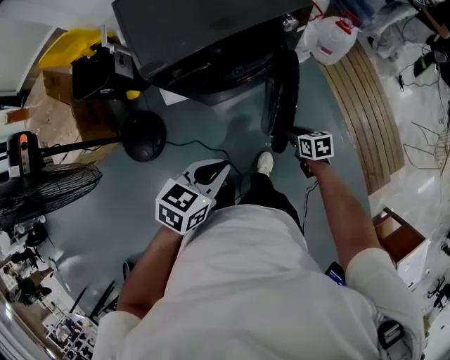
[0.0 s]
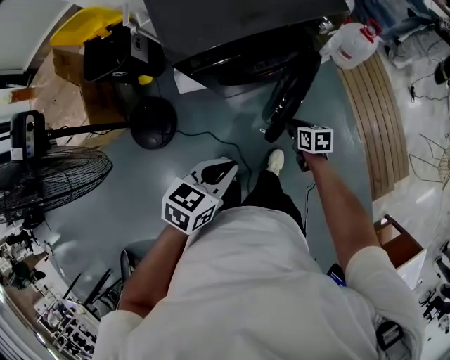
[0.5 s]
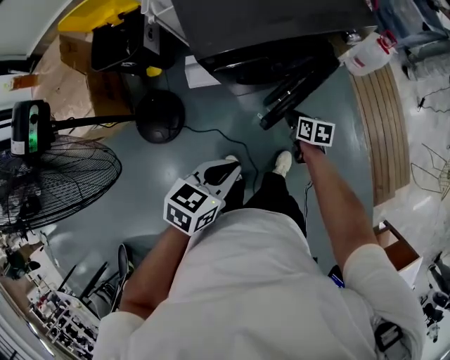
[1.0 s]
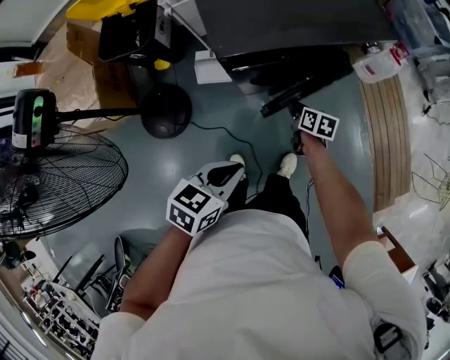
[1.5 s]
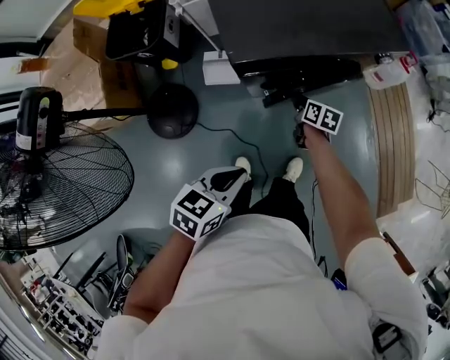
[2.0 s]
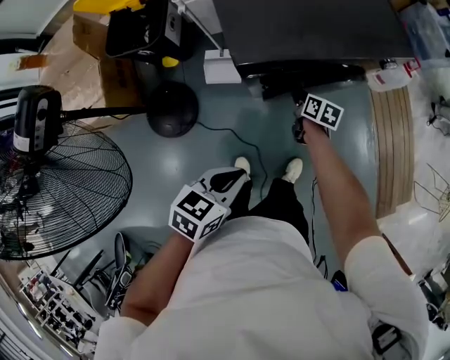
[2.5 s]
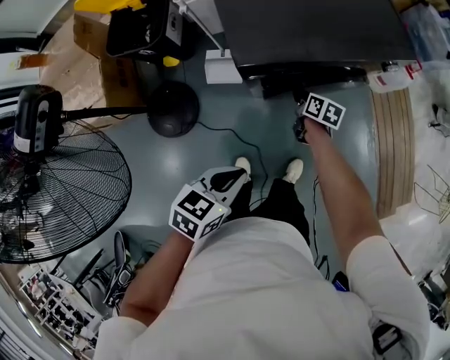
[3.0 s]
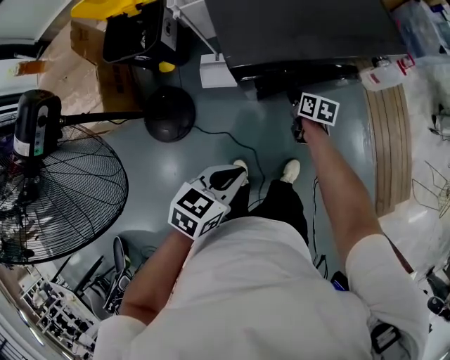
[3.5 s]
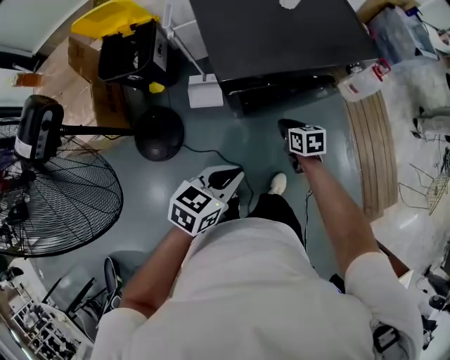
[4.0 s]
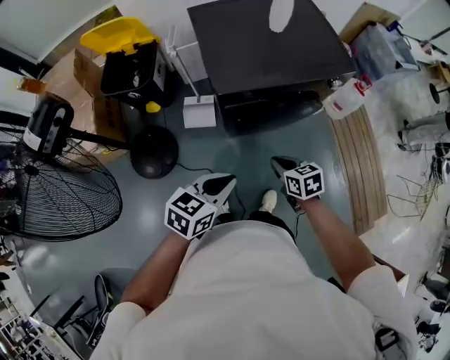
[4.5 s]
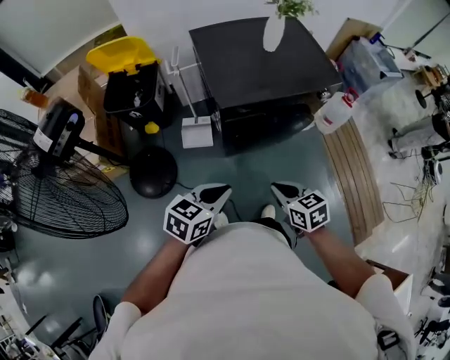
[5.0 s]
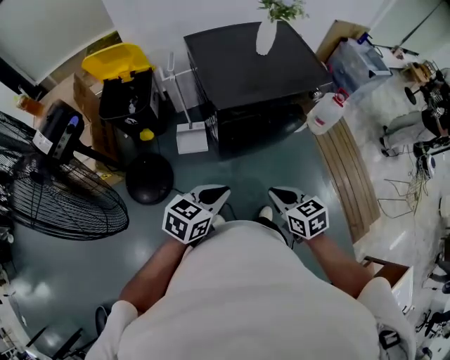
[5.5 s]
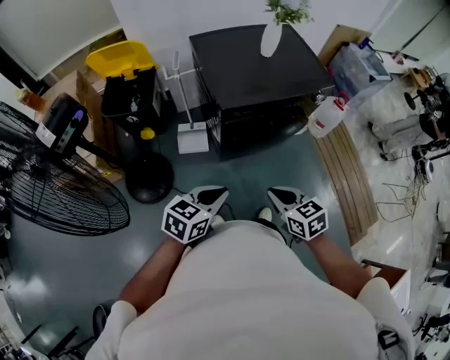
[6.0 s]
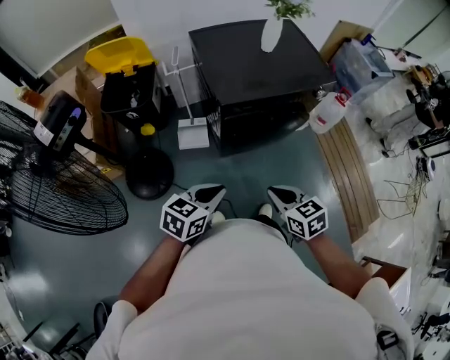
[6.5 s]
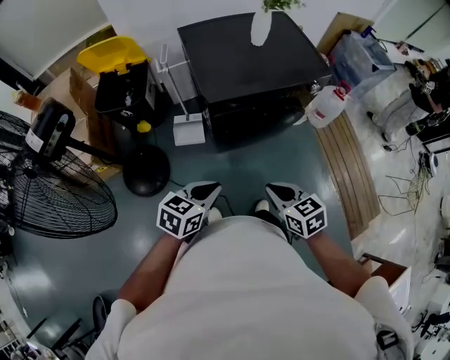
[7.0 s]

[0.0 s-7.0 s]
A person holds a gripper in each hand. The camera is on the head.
0.0 to 2.0 s: The left gripper heads to the left, covering about 20 cm. The right gripper heads to the left and forward, covering roughly 30 cm.
2.0 to 3.5 s: There are only small adjustments of the grippers.
3.5 to 5.0 s: The left gripper goes about 5 cm upward. Meanwhile the right gripper goes approximately 35 cm backward and upward, and swivels roughly 30 degrees.
5.0 to 7.0 s: There are only small adjustments of the grippers.

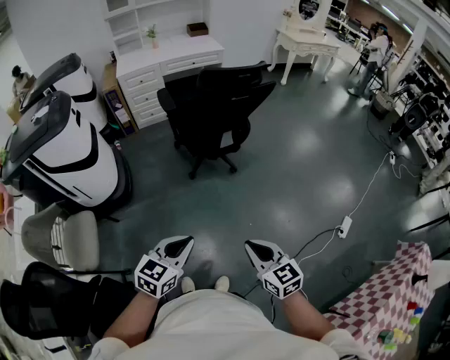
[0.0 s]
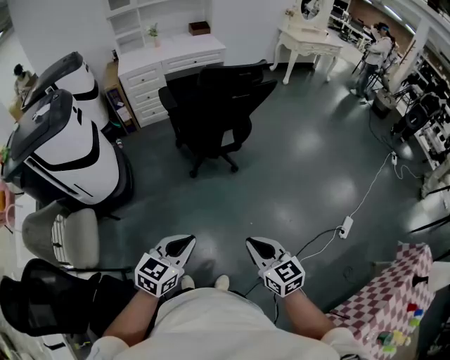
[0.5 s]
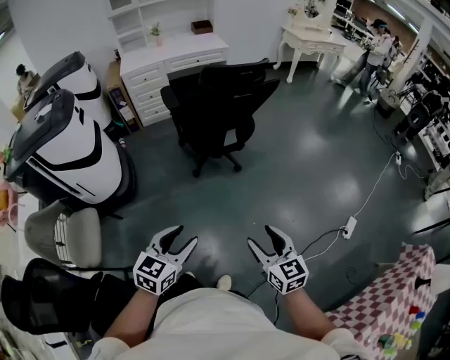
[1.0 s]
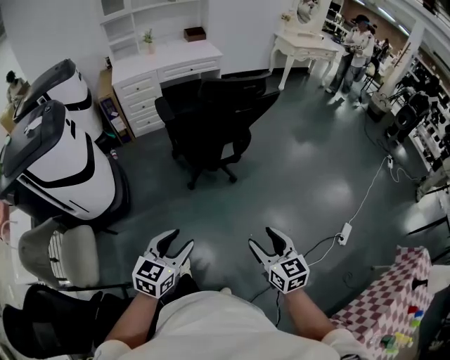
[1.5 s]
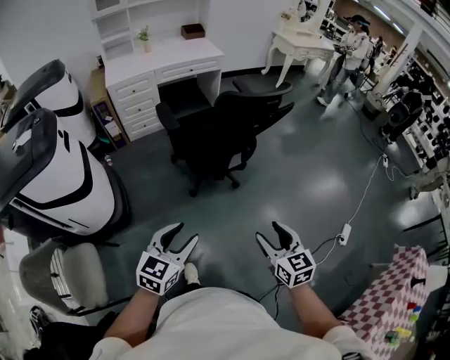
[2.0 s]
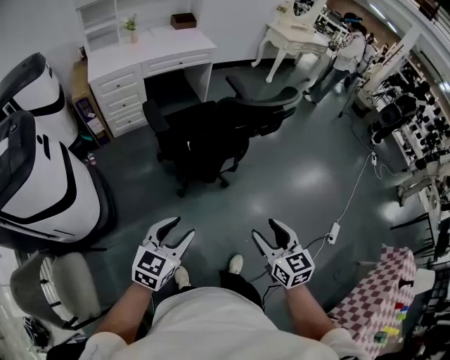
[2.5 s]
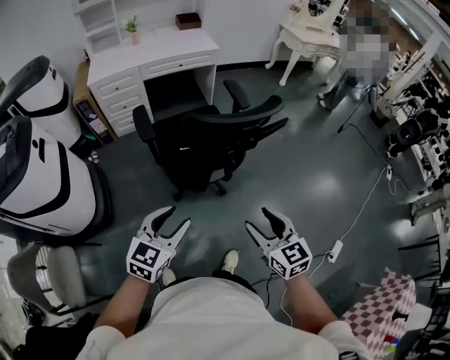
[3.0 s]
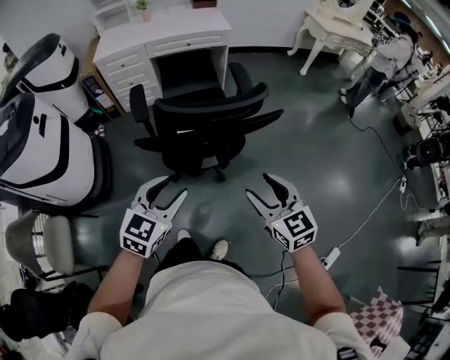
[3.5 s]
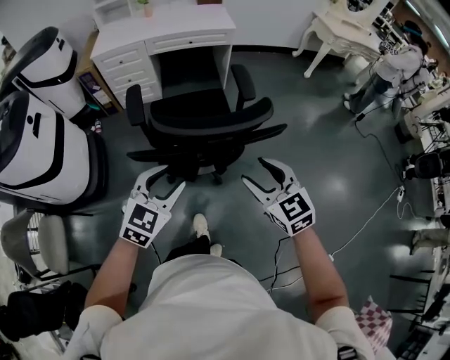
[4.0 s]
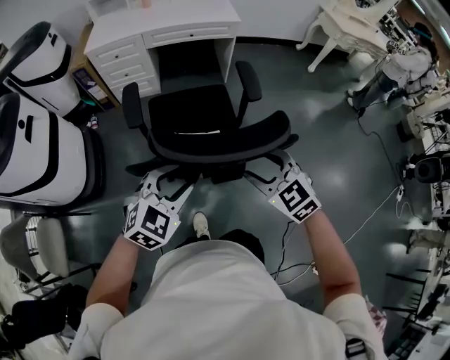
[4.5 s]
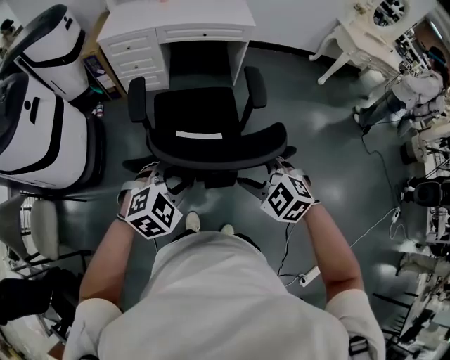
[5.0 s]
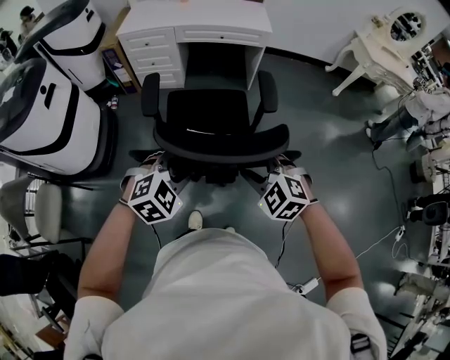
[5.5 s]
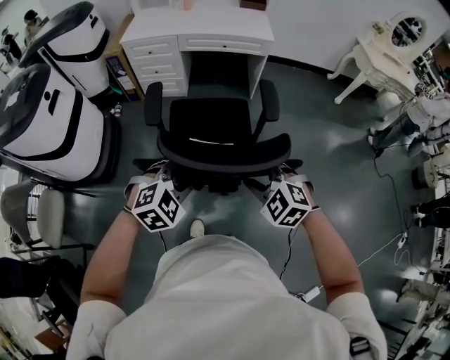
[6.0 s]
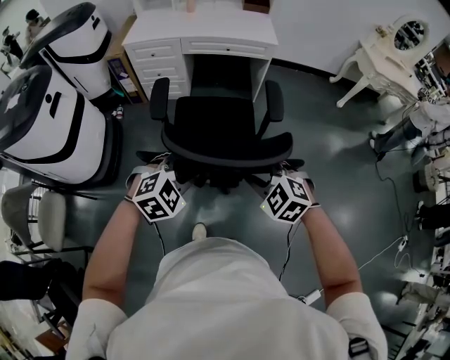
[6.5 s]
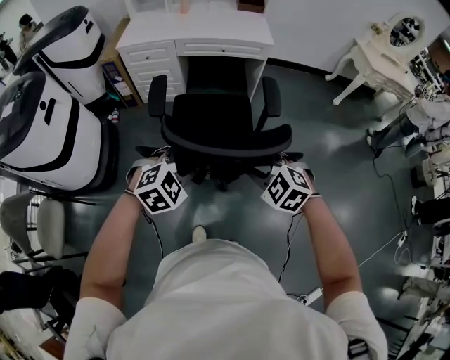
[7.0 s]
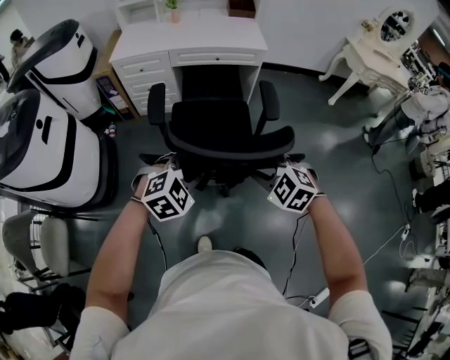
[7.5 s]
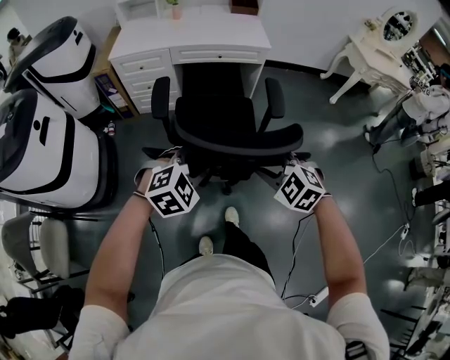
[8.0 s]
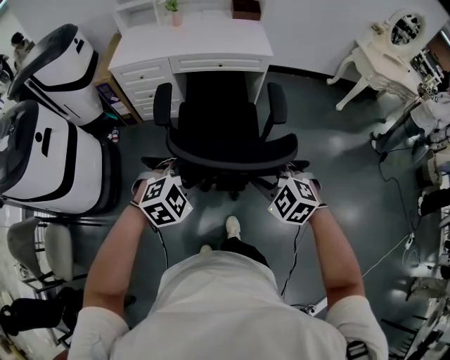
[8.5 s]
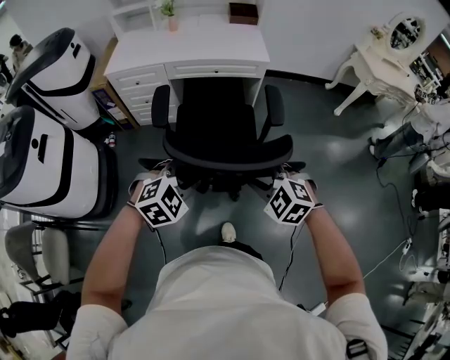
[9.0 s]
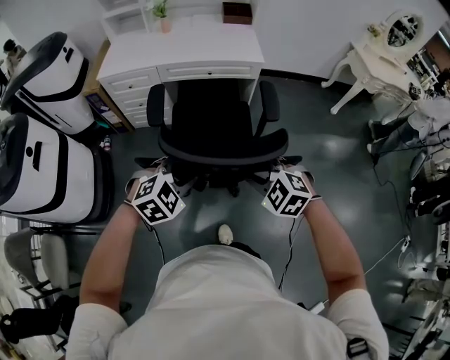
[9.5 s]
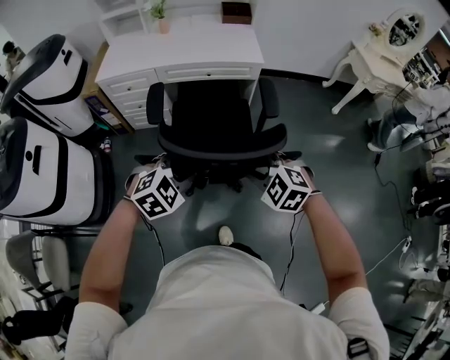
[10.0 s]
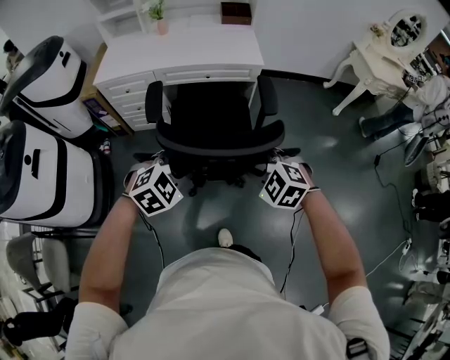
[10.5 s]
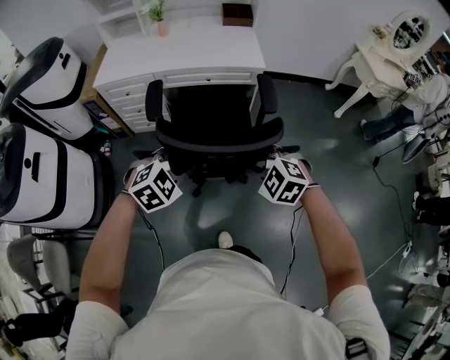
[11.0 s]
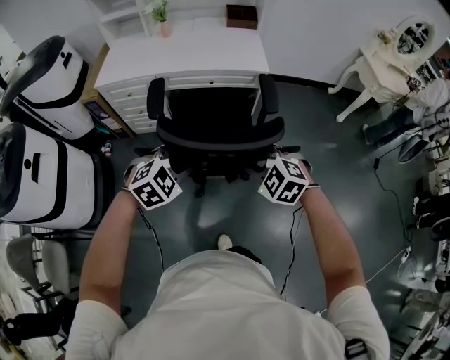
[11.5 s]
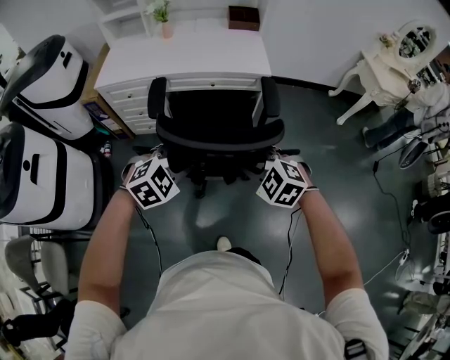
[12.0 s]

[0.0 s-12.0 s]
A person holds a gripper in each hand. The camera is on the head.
0.0 to 2.0 s: The left gripper travels forward and to the left by some 25 cm, and opens; the right gripper heads forward, covering about 20 cm, and opens.
2.0 to 4.0 s: The two grippers travel together, forward and to the right, some 40 cm. The right gripper changes its angle by roughly 30 degrees.
4.0 to 6.0 s: Both grippers move forward, roughly 10 cm. The left gripper turns by approximately 30 degrees. Meanwhile the right gripper rotates about 50 degrees, and closes up.
6.0 to 8.0 s: Both grippers move forward, approximately 15 cm.
8.0 to 10.0 s: Both grippers travel together forward, about 15 cm.
10.0 to 12.0 s: Both grippers travel together forward, about 10 cm.

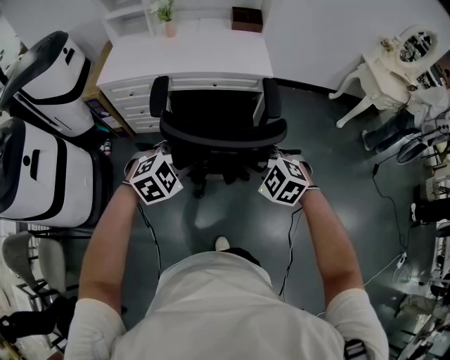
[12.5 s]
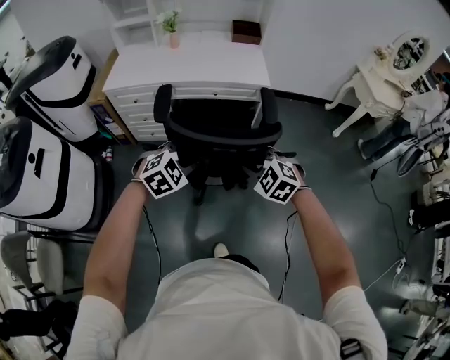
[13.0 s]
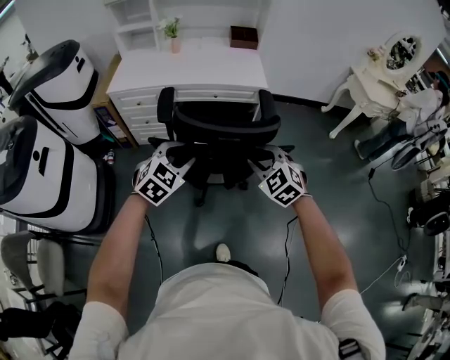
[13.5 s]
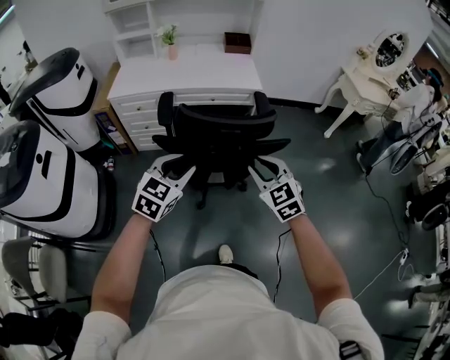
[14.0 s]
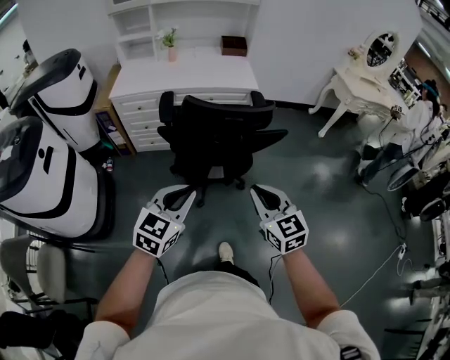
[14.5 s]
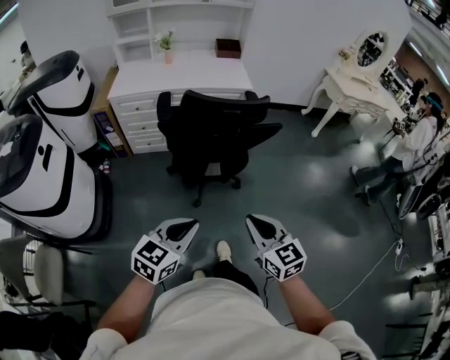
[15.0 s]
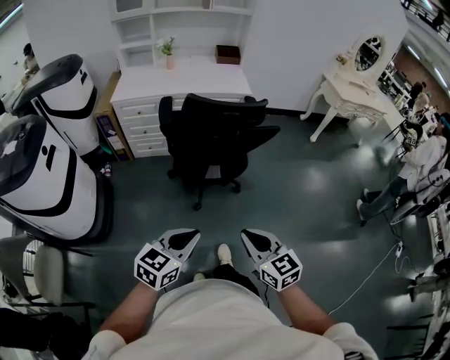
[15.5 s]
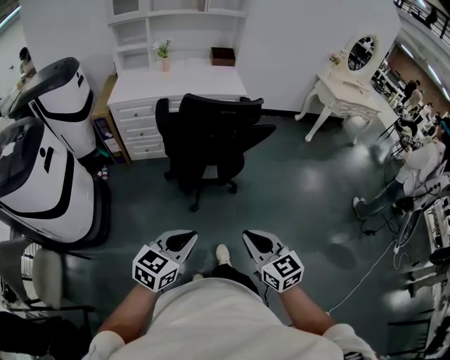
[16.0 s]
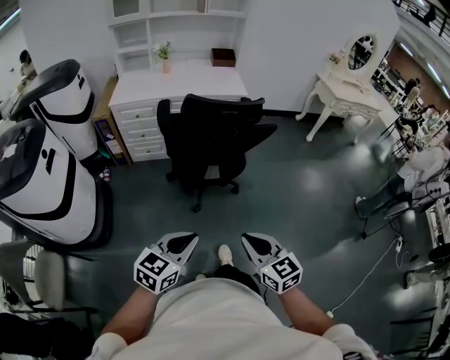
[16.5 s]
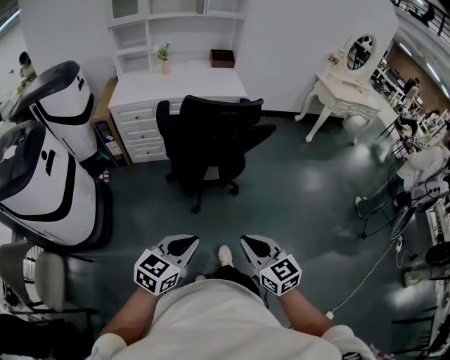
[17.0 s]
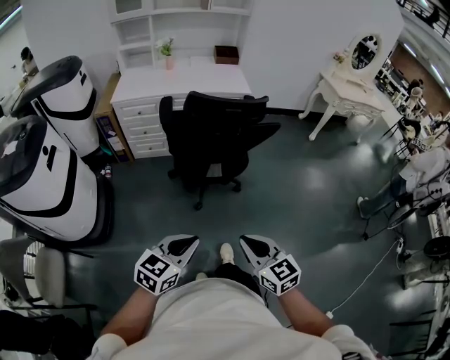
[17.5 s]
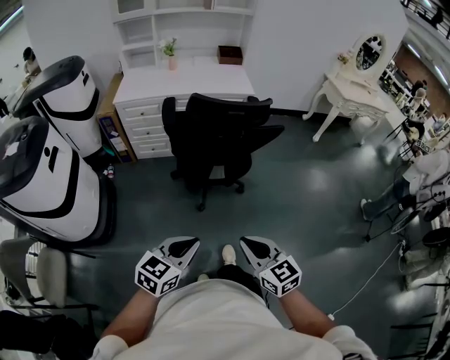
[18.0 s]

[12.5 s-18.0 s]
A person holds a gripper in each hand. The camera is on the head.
12.5 to 14.5 s: Both grippers travel together backward, some 25 cm. The right gripper tilts its fingers roughly 30 degrees upward, and closes, while the left gripper rotates about 40 degrees.
14.5 to 16.0 s: Both grippers travel together backward, some 20 cm.
16.0 to 18.0 s: The grippers stay close to where they were, moving slightly.

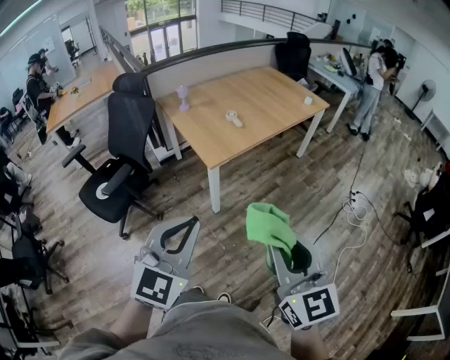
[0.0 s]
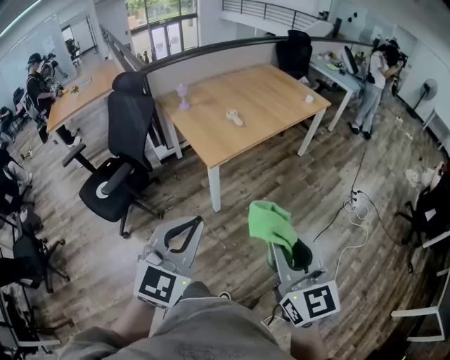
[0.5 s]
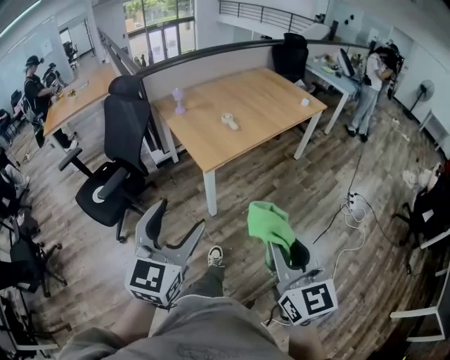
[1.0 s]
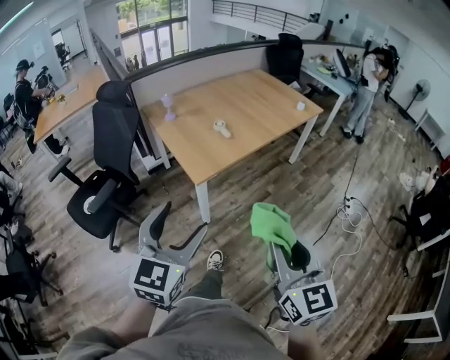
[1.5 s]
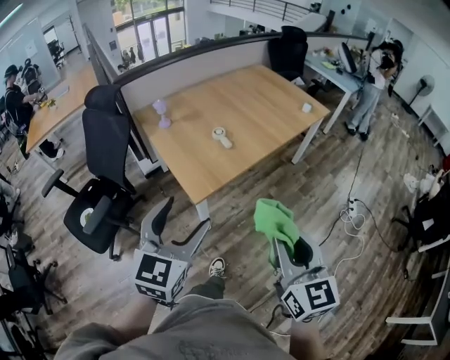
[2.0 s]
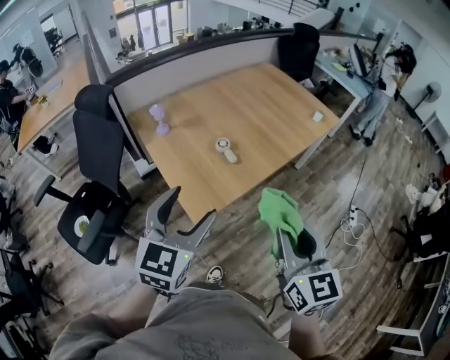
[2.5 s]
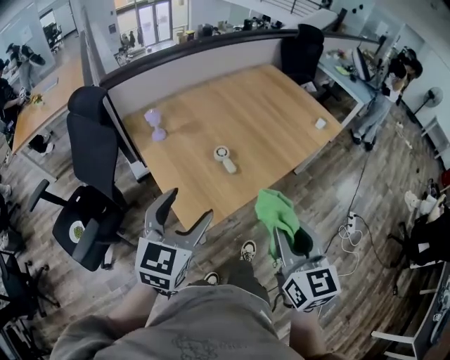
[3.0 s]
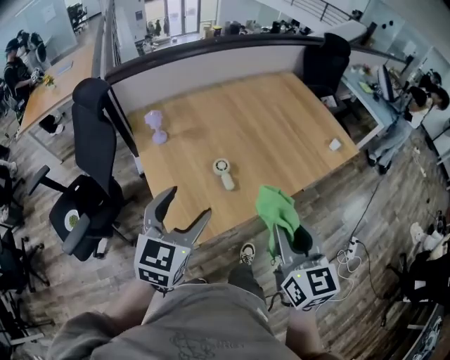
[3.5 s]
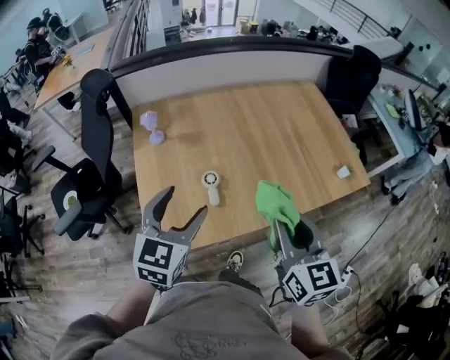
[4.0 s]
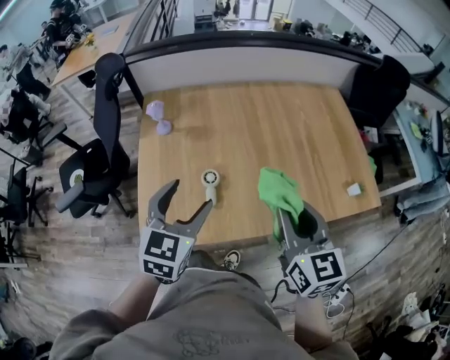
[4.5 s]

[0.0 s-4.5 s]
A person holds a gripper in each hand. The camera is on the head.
0.0 to 2.0 s: Both grippers move forward, approximately 25 cm. The left gripper opens its fingers.
2.0 to 4.5 s: Both grippers are carried some 50 cm. The right gripper turns by some 30 degrees. Meanwhile the left gripper rotates about 30 degrees.
